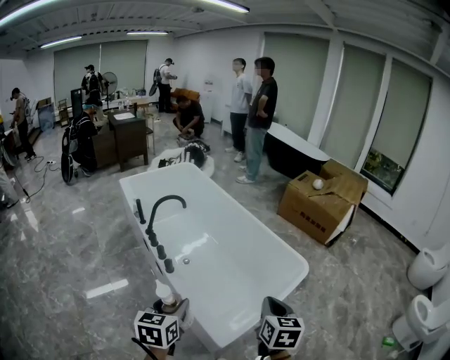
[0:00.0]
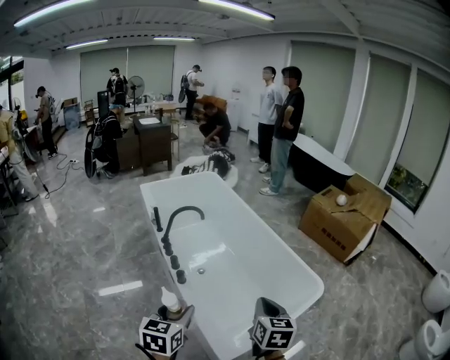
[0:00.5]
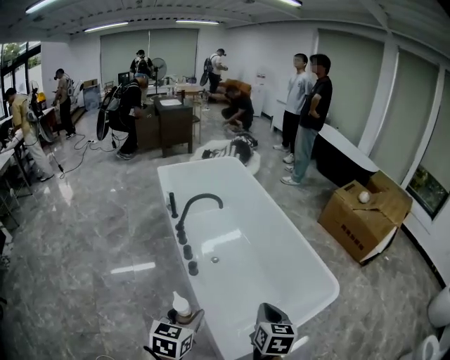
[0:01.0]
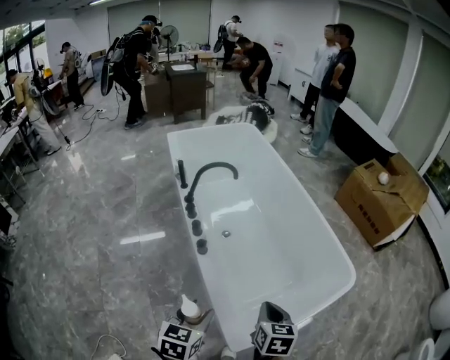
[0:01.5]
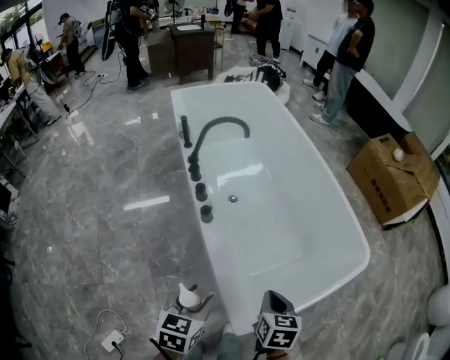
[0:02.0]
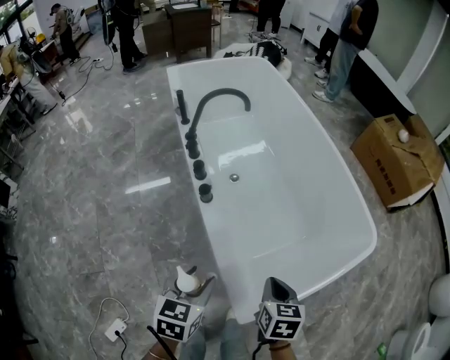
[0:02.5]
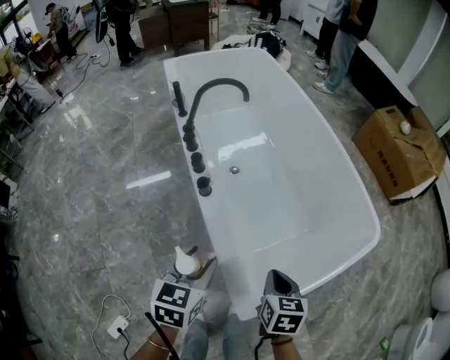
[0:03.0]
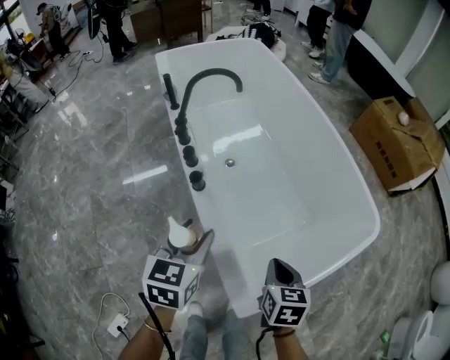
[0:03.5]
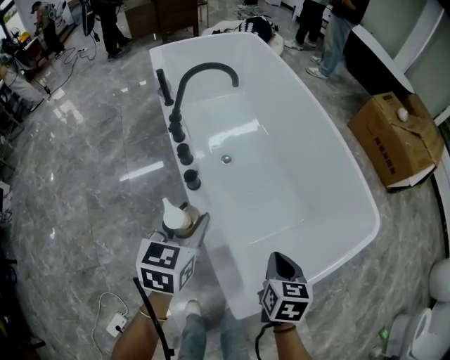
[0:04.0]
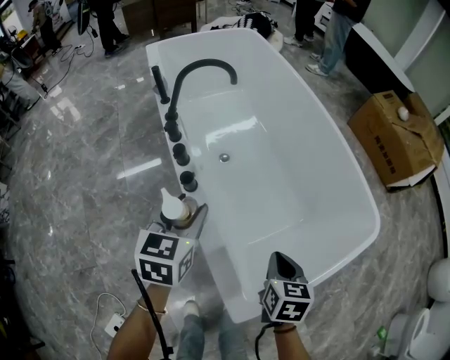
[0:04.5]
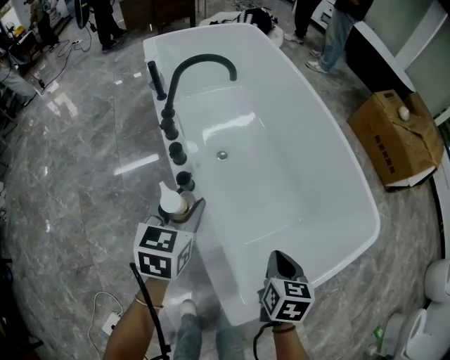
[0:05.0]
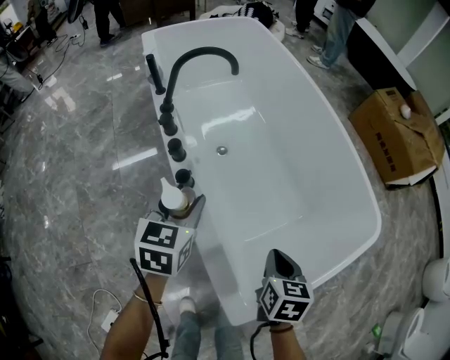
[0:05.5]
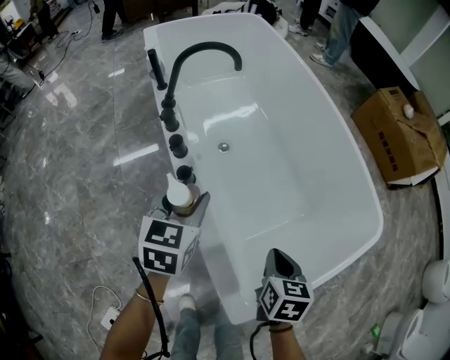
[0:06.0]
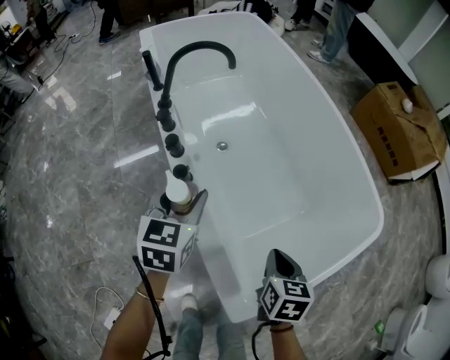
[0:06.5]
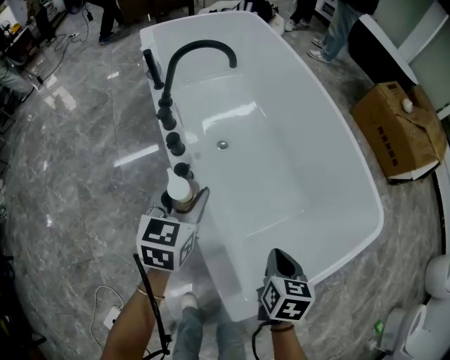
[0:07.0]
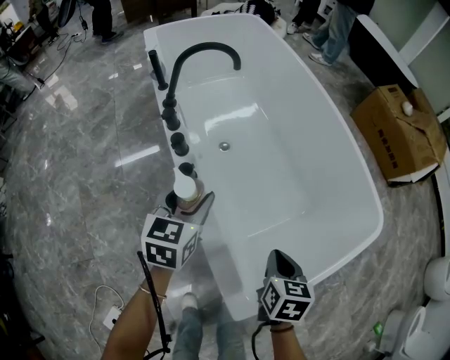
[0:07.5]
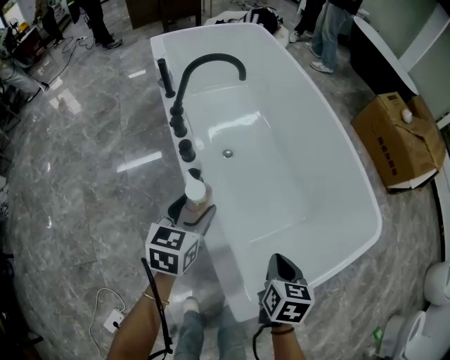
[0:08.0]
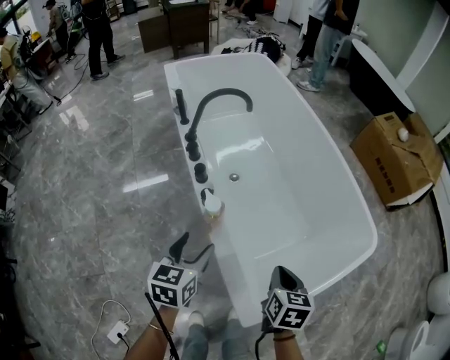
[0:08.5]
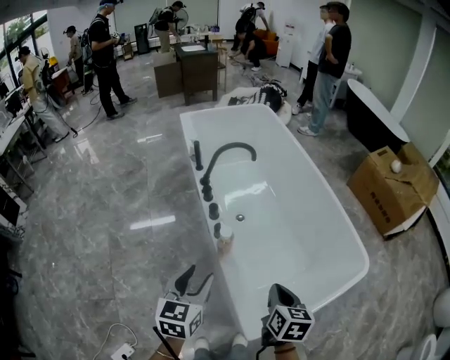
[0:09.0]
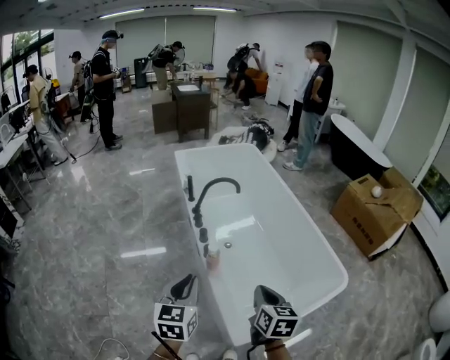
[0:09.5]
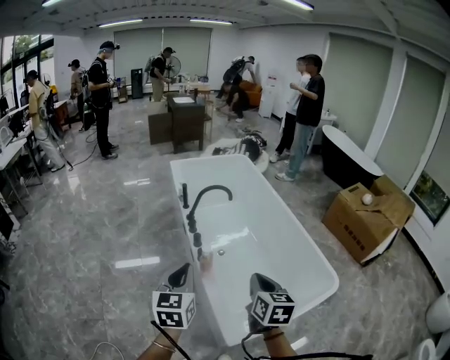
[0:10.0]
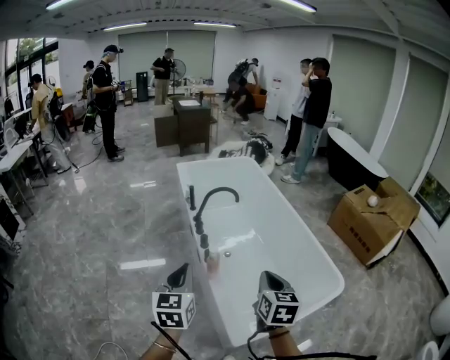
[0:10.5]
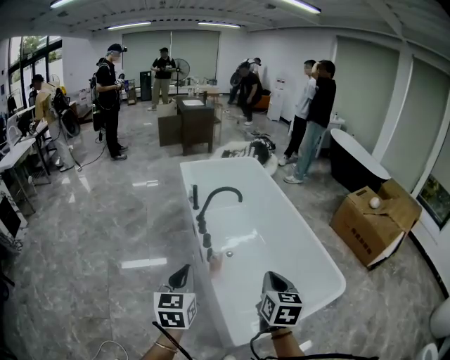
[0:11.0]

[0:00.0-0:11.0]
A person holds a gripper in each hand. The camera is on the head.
0.0 to 2.0 s: Both grippers travel together downward, approximately 20 cm. The right gripper rotates some 30 degrees.
2.0 to 3.5 s: The right gripper changes place by some 5 cm. Meanwhile the left gripper moves forward, approximately 10 cm.
3.5 to 5.5 s: The left gripper moves forward, roughly 10 cm. The right gripper is displaced forward by about 5 cm.
5.5 to 7.5 s: There are only small adjustments of the grippers.
7.5 to 9.0 s: The left gripper travels backward and upward by roughly 25 cm. The right gripper moves upward, approximately 15 cm.
9.0 to 11.0 s: The right gripper goes about 15 cm upward; the left gripper heads upward and backward, covering approximately 15 cm, and closes its fingers.

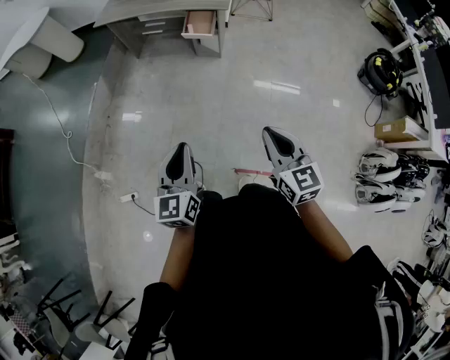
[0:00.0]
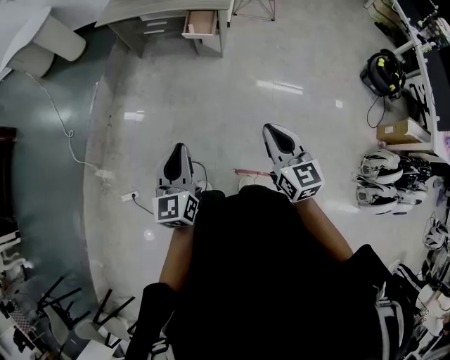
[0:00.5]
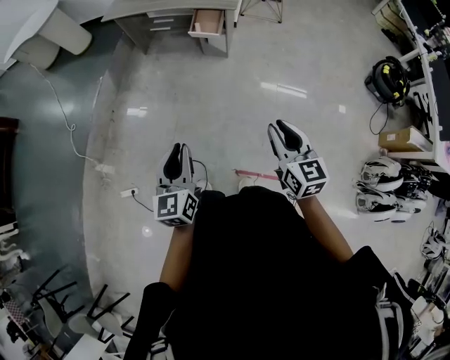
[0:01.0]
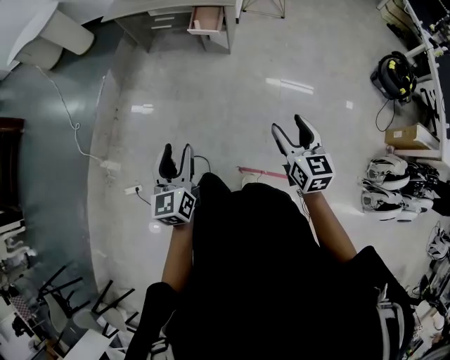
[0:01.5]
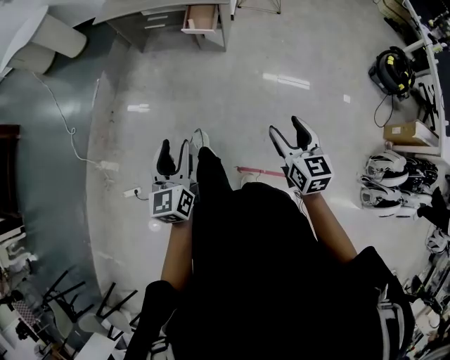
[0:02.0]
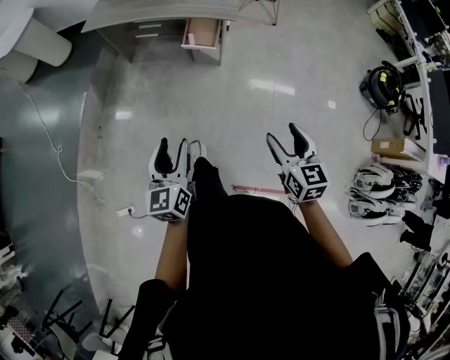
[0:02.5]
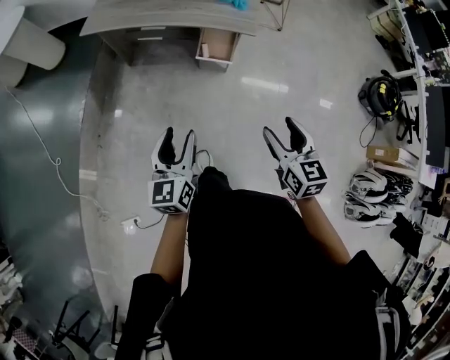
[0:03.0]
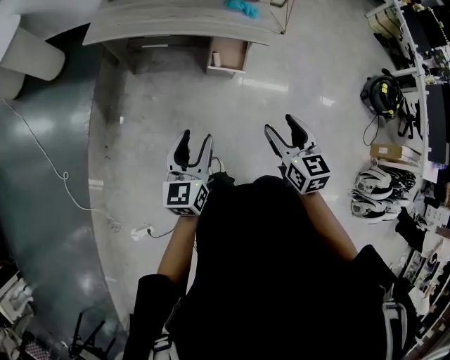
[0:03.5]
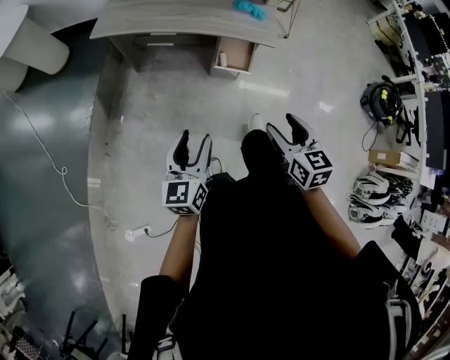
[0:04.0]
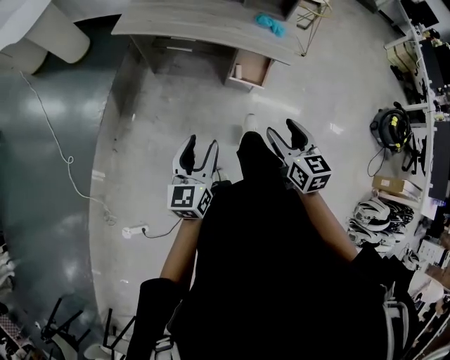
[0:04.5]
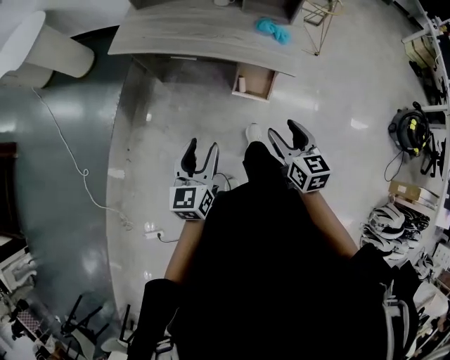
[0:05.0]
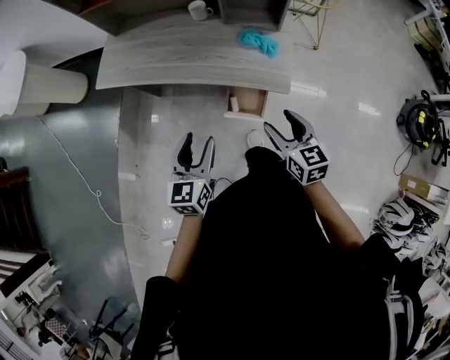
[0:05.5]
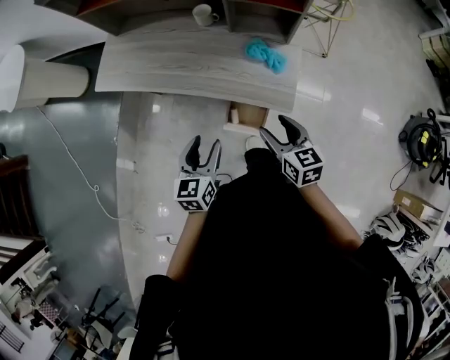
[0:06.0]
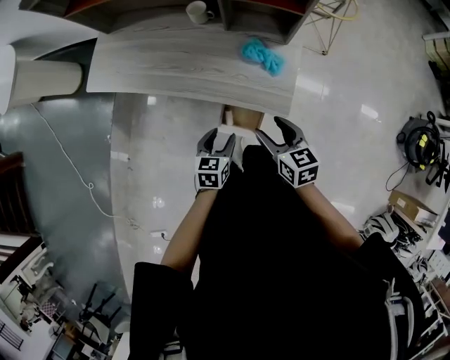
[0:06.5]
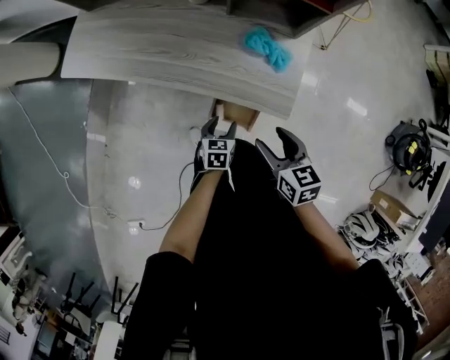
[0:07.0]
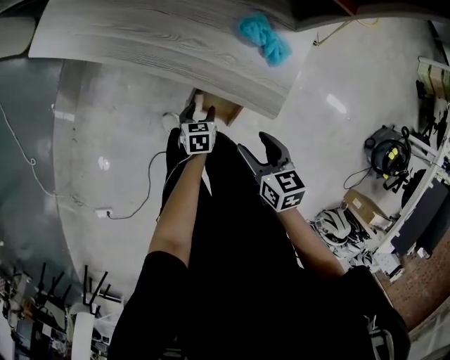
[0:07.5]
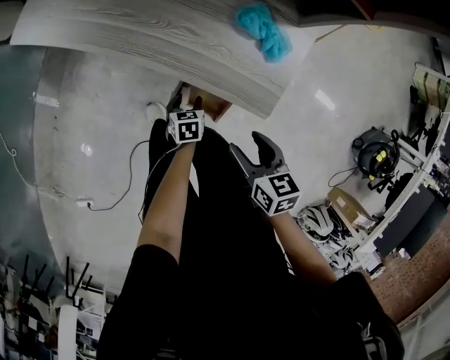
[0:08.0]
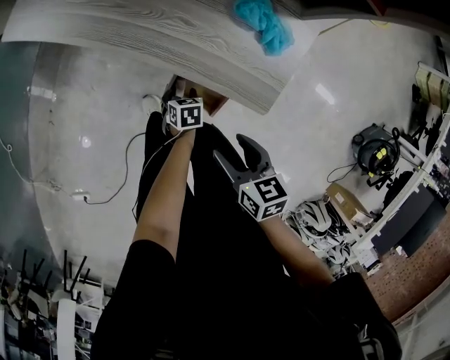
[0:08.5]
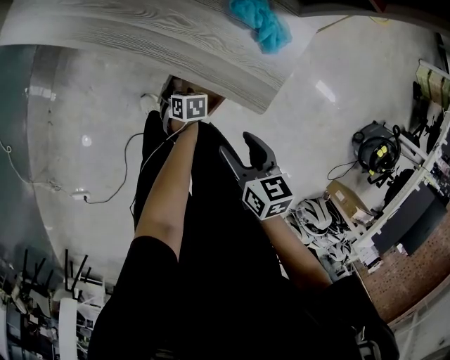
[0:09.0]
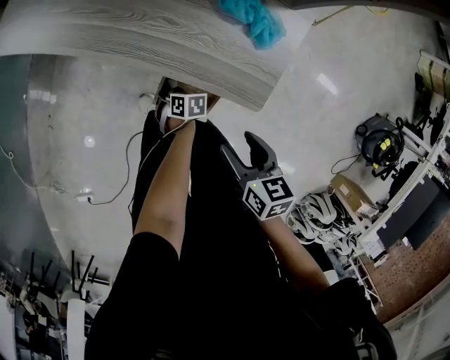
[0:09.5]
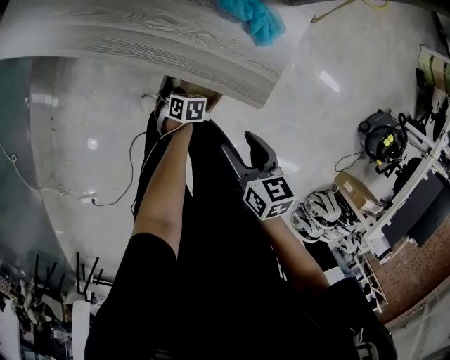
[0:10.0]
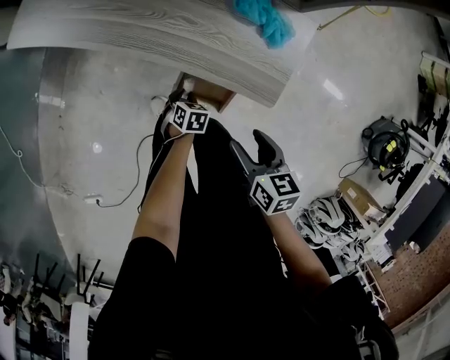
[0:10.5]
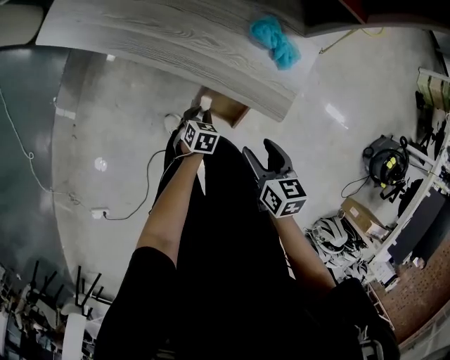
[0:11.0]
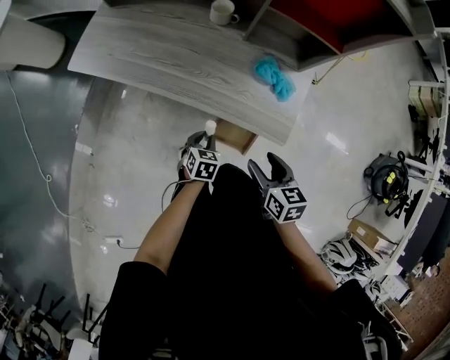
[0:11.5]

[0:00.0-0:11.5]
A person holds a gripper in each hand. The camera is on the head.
0.0 to 2.0 s: The right gripper goes about 15 cm to the right, downward and forward, and opens, while the left gripper heads forward, covering about 5 cm, and opens its fingers.
2.0 to 4.0 s: Both grippers are carried forward and to the left, some 50 cm.
4.0 to 6.0 s: The two grippers travel together, forward and to the right, approximately 40 cm.
6.0 to 7.5 s: The left gripper heads downward, covering some 40 cm, and swivels about 30 degrees; the right gripper heads downward, covering approximately 15 cm.
7.5 to 9.5 s: The right gripper shifts by some 5 cm. The left gripper heads downward, covering roughly 10 cm, turns by about 30 degrees, and closes up.
9.5 to 11.5 s: The left gripper travels upward by roughly 20 cm, and swivels some 30 degrees, while the right gripper travels upward by approximately 10 cm.

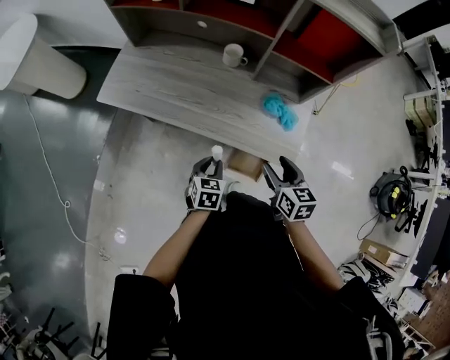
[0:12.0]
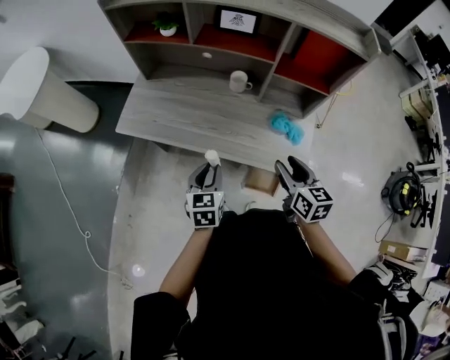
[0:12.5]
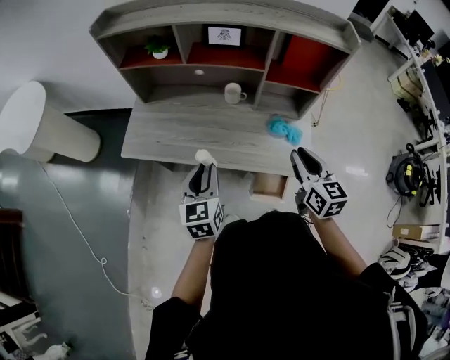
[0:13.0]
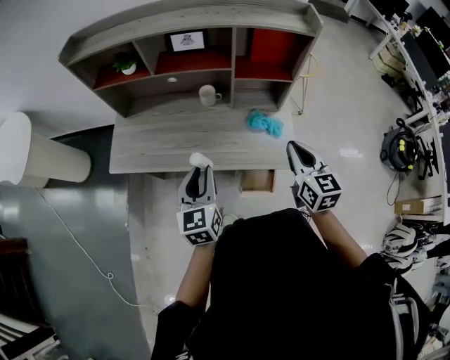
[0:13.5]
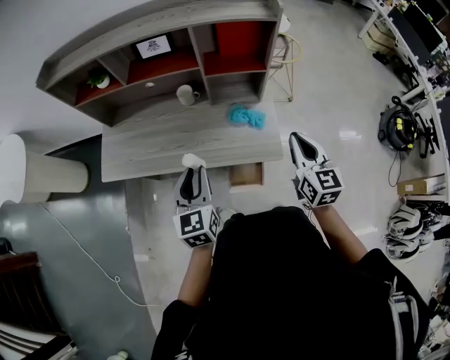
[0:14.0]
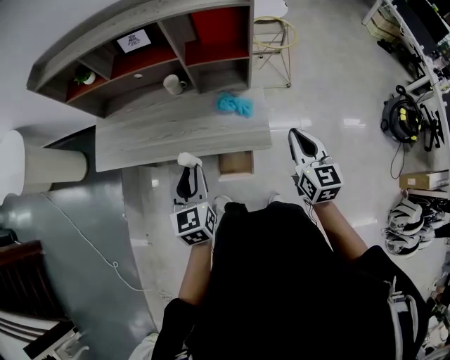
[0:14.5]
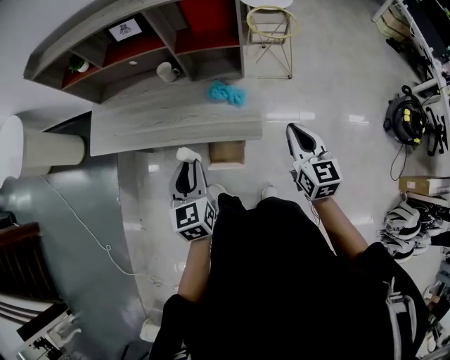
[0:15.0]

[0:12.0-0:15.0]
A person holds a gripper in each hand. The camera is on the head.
12.0 to 13.5 s: Both grippers travel together upward, roughly 25 cm. The left gripper swivels roughly 30 degrees. Meanwhile the right gripper rotates roughly 20 degrees, and closes up.
13.5 to 15.0 s: The grippers both shift to the right by some 20 cm.

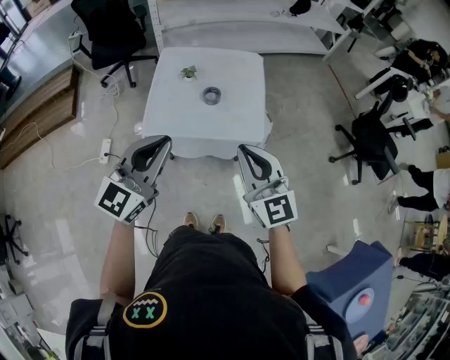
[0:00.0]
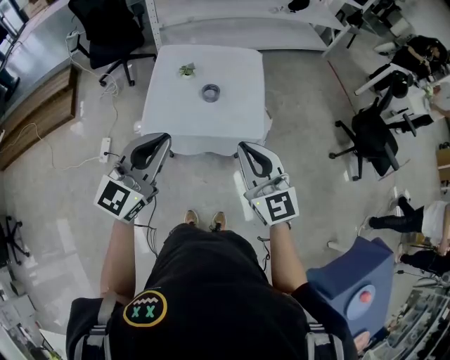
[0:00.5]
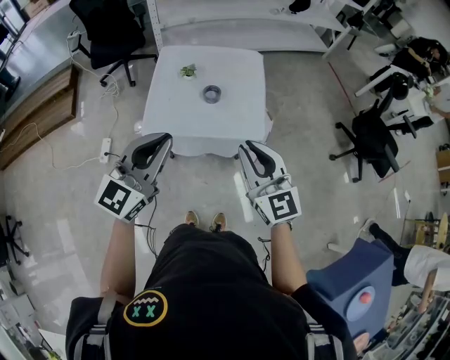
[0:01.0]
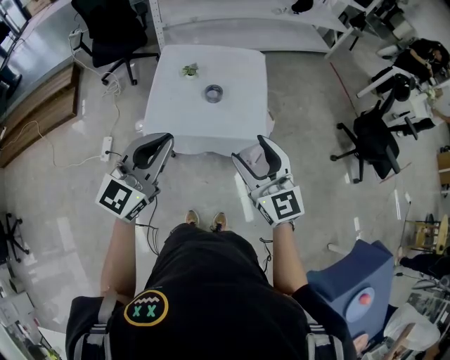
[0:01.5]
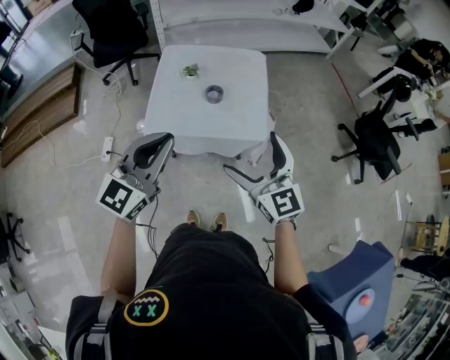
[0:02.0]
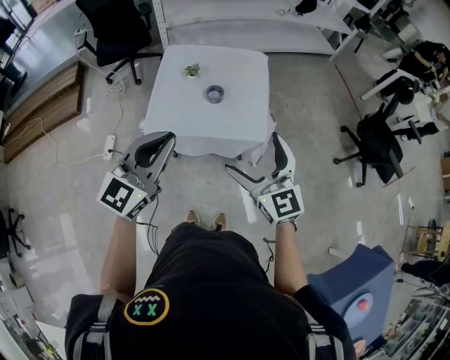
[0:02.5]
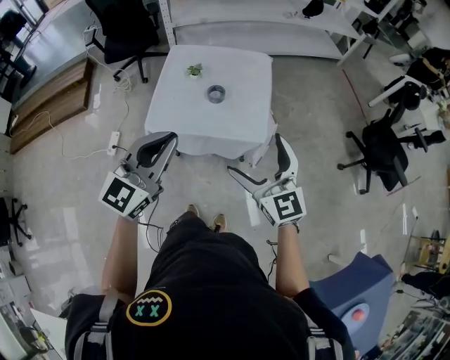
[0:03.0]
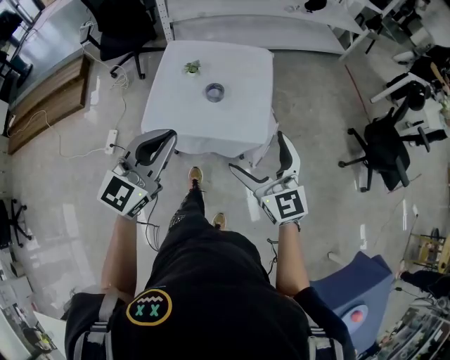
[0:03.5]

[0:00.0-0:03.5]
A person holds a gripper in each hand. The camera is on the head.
0.0 to 2.0 s: The right gripper opens up.
2.0 to 3.5 s: The left gripper ends up about 5 cm from where it was; the right gripper heads to the right, covering roughly 5 cm.
